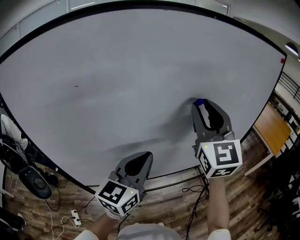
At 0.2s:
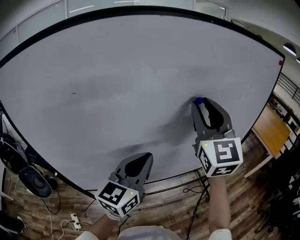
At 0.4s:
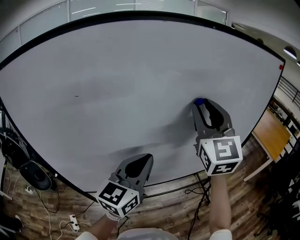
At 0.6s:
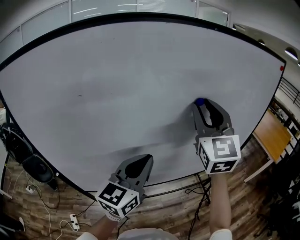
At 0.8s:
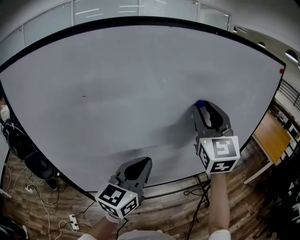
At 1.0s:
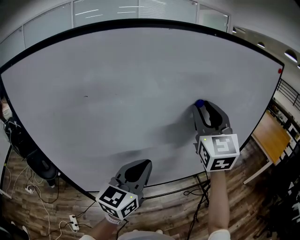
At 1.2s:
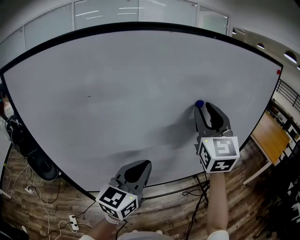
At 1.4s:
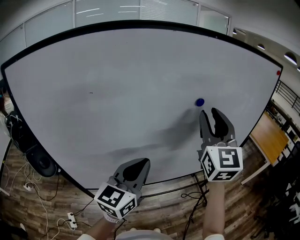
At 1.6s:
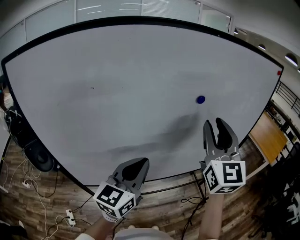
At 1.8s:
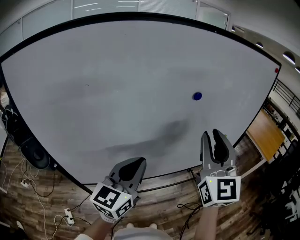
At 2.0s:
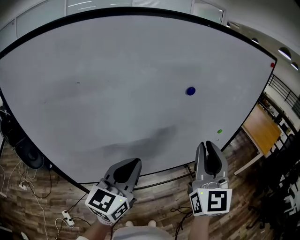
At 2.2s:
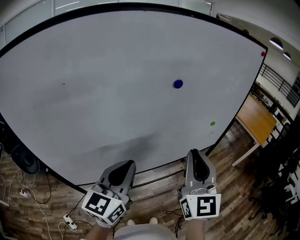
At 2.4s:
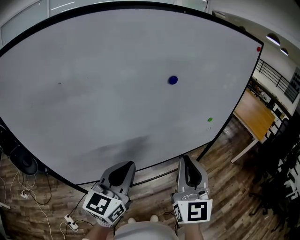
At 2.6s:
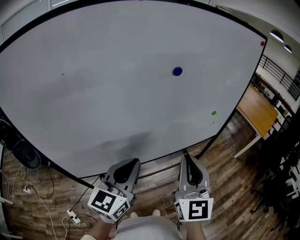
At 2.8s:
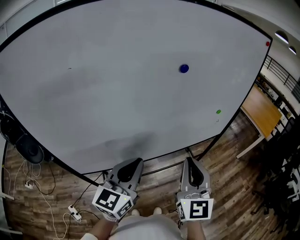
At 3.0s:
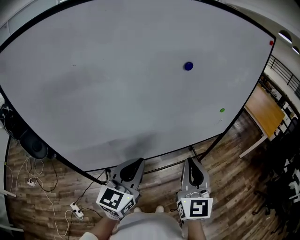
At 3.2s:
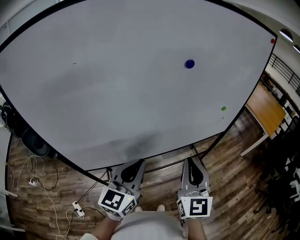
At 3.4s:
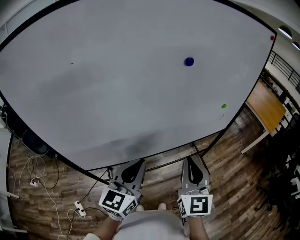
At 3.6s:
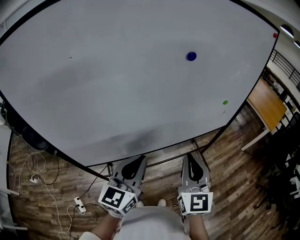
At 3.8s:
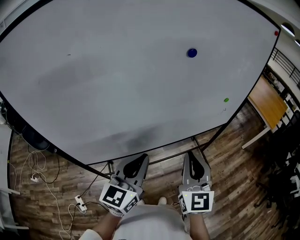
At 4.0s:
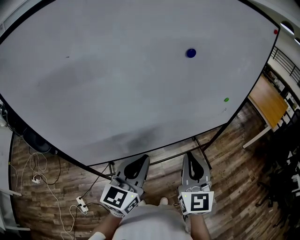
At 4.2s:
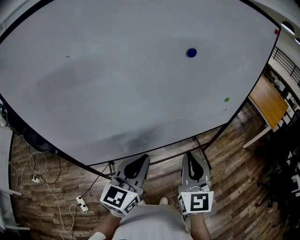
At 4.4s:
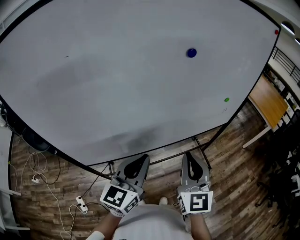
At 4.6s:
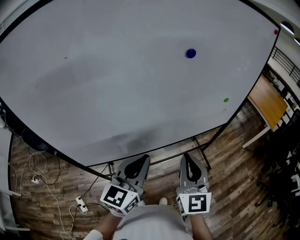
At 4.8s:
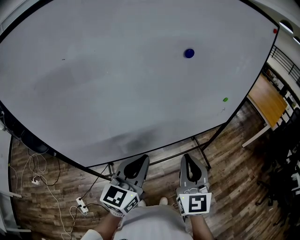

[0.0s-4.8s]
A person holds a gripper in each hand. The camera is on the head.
0.0s to 1.6s: The right gripper ends up some 5 cm from where it was.
1.6s to 3.2s: The left gripper shifts roughly 10 cm downward and backward, while the right gripper goes approximately 25 cm downward and backward, and closes up.
3.2s to 4.8s: There are only small adjustments of the grippers.

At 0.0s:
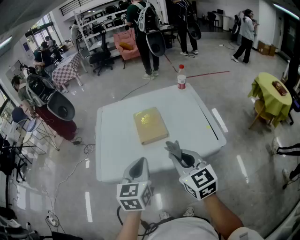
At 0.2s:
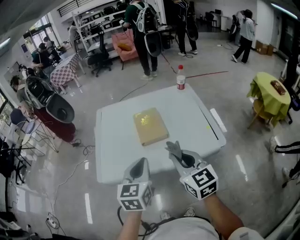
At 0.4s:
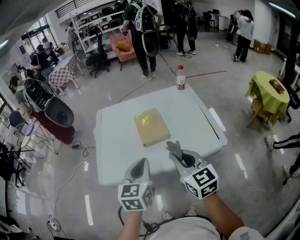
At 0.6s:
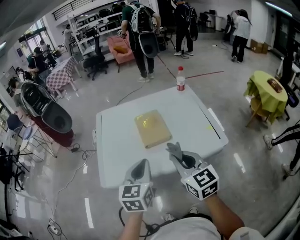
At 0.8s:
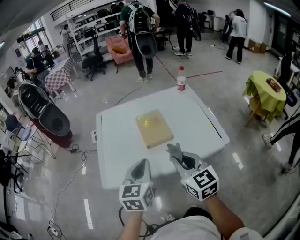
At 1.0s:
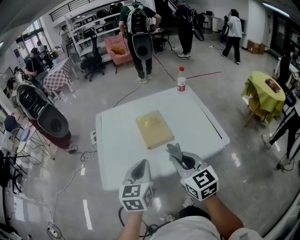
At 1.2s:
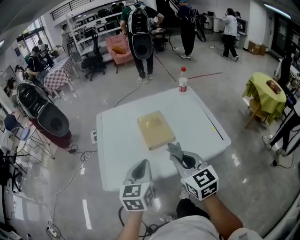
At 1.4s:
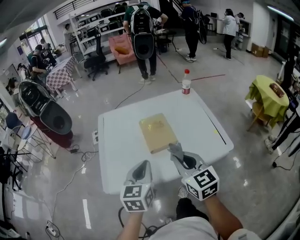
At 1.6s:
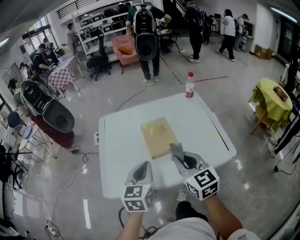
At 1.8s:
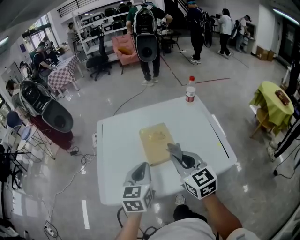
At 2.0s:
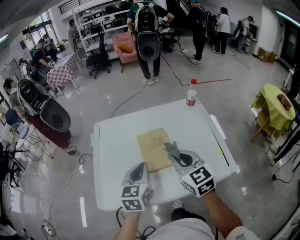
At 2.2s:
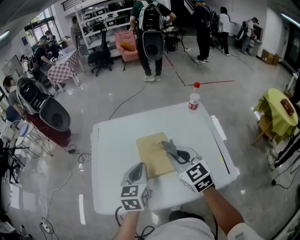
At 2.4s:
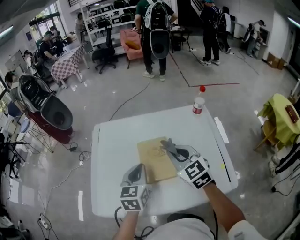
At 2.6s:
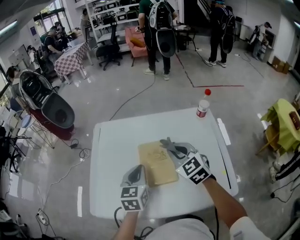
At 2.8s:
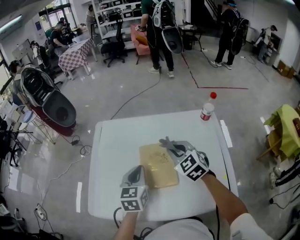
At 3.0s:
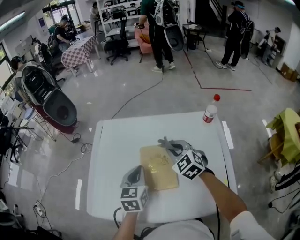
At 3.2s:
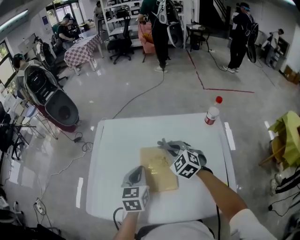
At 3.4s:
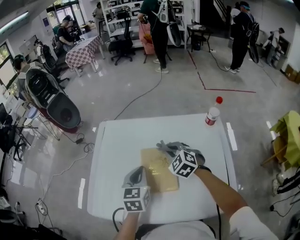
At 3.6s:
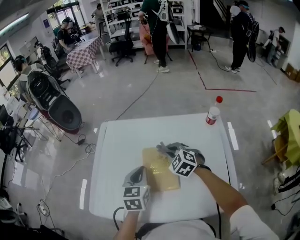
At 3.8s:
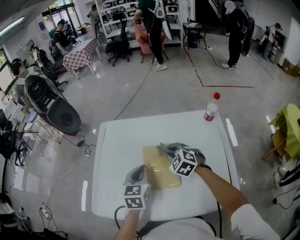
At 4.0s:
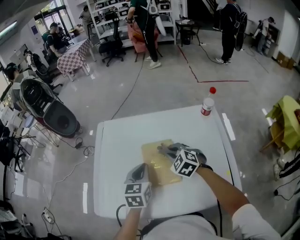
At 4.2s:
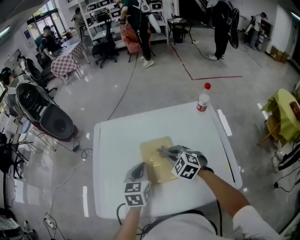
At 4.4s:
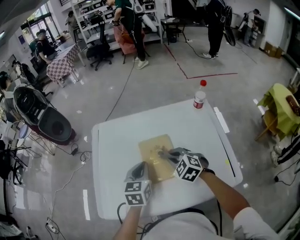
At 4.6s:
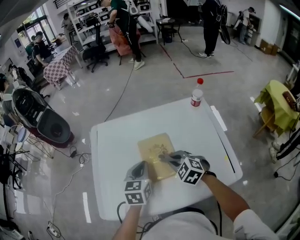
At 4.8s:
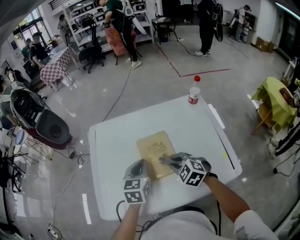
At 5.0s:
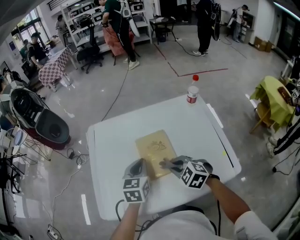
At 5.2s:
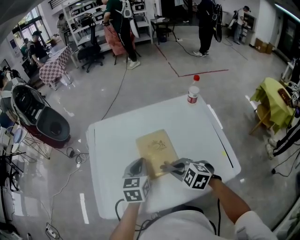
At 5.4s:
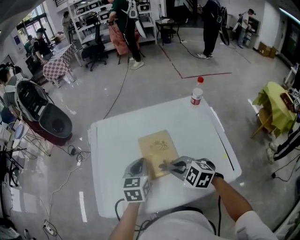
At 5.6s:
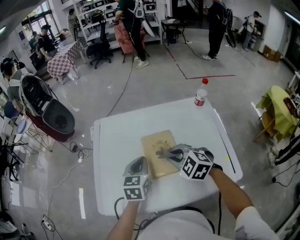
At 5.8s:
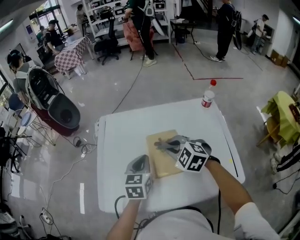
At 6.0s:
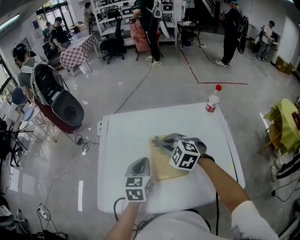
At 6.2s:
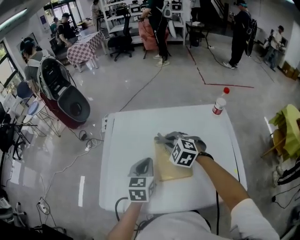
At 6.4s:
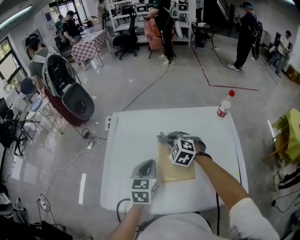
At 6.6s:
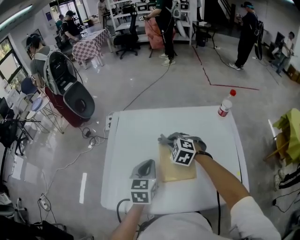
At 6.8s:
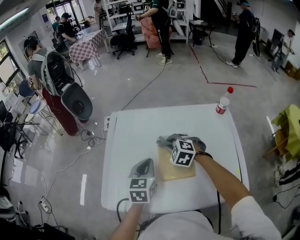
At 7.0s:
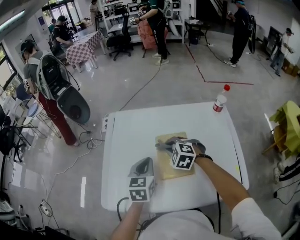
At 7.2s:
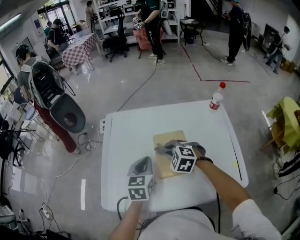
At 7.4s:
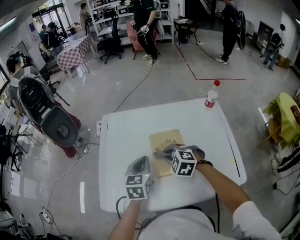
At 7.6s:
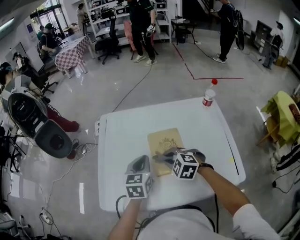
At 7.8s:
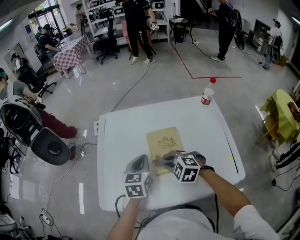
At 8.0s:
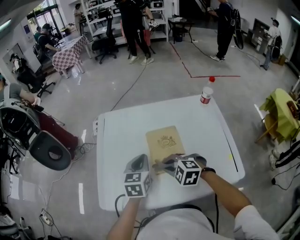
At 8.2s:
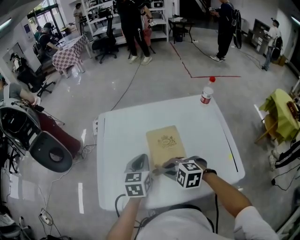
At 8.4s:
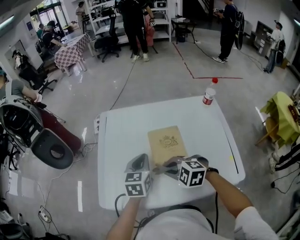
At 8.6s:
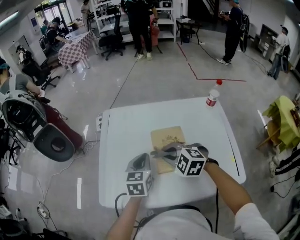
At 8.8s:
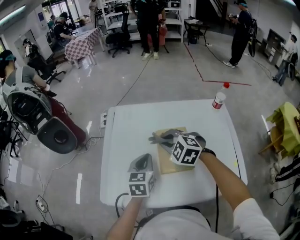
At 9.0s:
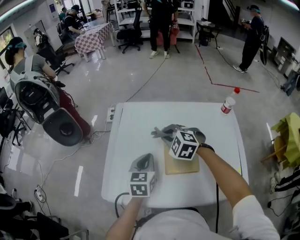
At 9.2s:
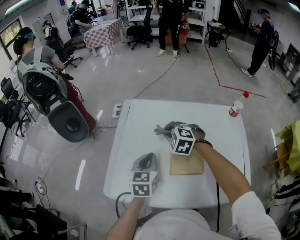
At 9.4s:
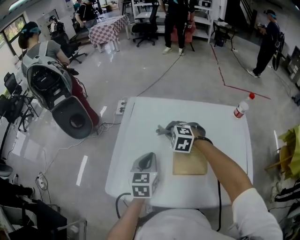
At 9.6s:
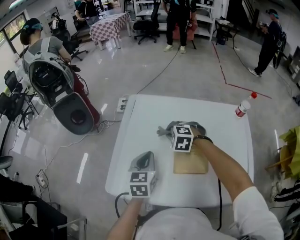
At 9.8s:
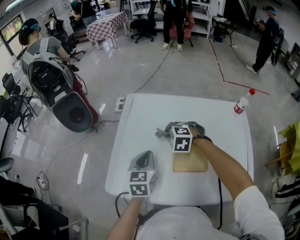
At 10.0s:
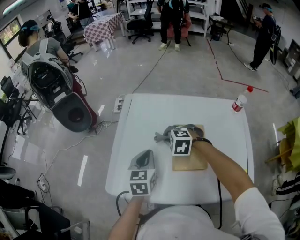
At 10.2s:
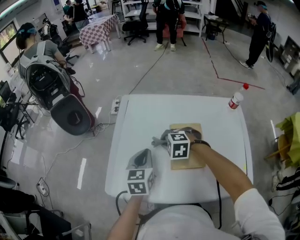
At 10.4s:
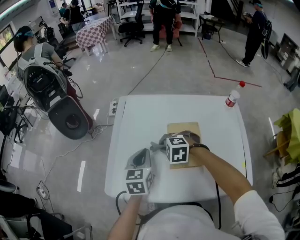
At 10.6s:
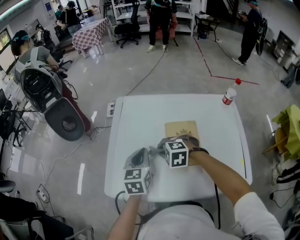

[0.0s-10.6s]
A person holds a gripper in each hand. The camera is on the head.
0.0s to 1.6s: Both grippers travel together forward, approximately 5 cm.
1.6s to 3.0s: The right gripper moves forward, roughly 25 cm, and changes its angle by some 40 degrees. Meanwhile the left gripper goes about 20 cm forward.
3.0s to 4.6s: The right gripper heads backward and downward, covering approximately 10 cm.
4.6s to 6.0s: The right gripper moves forward, to the left and upward, some 10 cm.
6.0s to 7.6s: The right gripper heads backward and downward, covering approximately 10 cm.
7.6s to 9.0s: The right gripper goes about 10 cm forward.
9.0s to 10.6s: The right gripper heads backward, to the left and downward, covering approximately 15 cm, and turns by some 20 degrees.

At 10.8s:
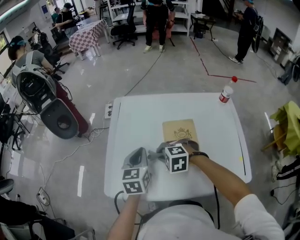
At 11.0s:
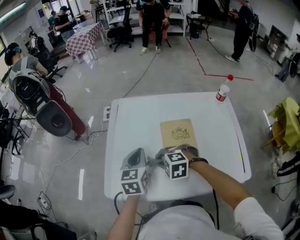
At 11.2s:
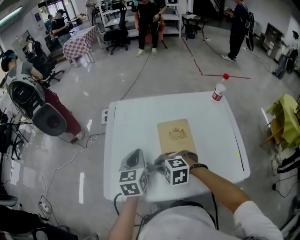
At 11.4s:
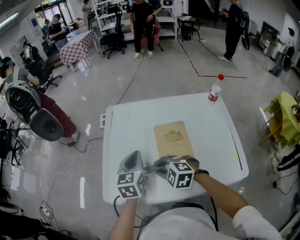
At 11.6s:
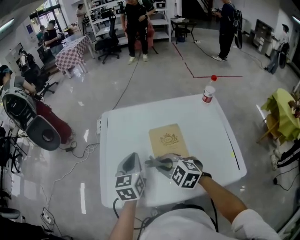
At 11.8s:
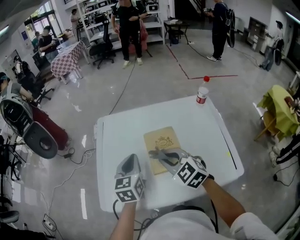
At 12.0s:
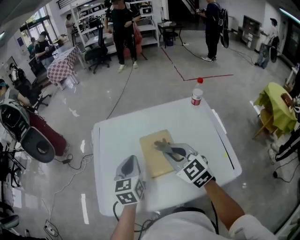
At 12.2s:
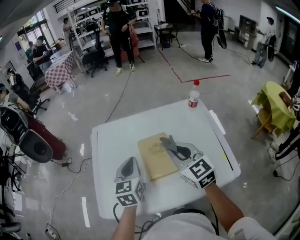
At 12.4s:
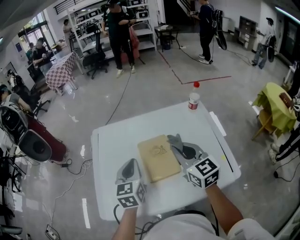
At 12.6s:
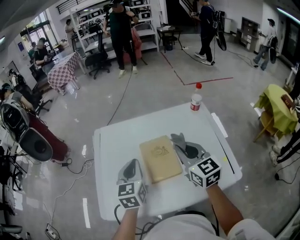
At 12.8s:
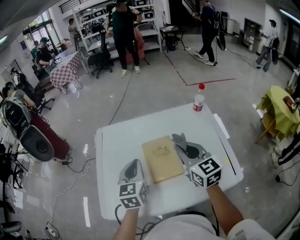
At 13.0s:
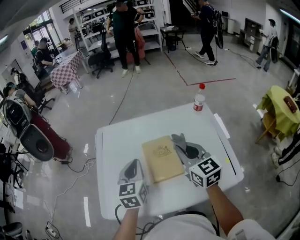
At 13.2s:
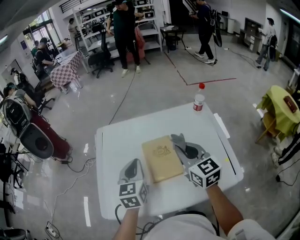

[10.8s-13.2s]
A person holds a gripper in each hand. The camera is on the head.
10.8s to 12.0s: The right gripper travels upward and to the right by approximately 20 cm, and tilts its fingers some 40 degrees upward. The left gripper travels to the right and upward by roughly 10 cm.
12.0s to 13.2s: The right gripper is displaced to the right by approximately 5 cm, and changes its angle by approximately 20 degrees.

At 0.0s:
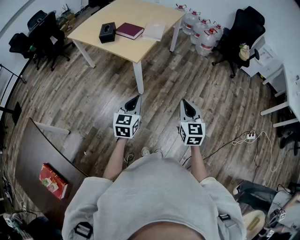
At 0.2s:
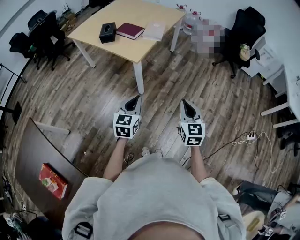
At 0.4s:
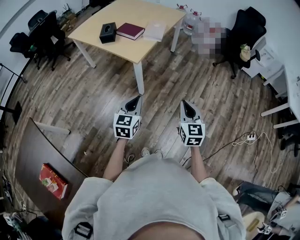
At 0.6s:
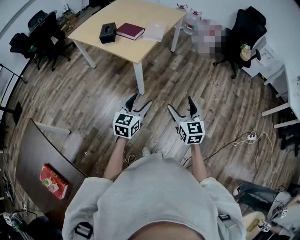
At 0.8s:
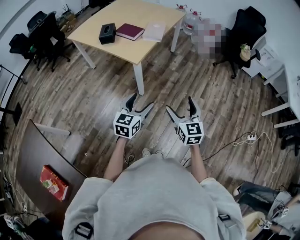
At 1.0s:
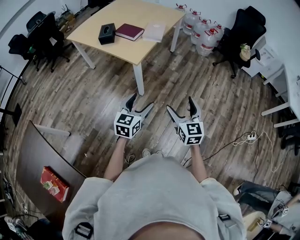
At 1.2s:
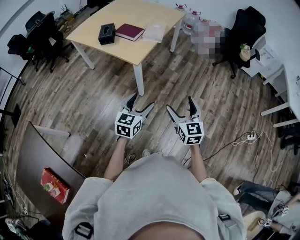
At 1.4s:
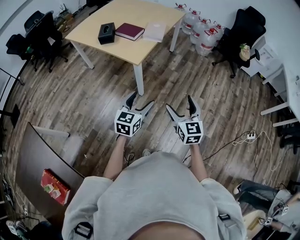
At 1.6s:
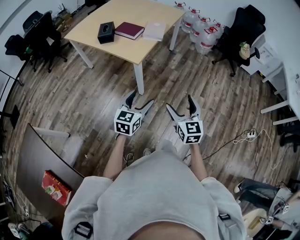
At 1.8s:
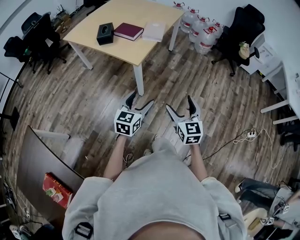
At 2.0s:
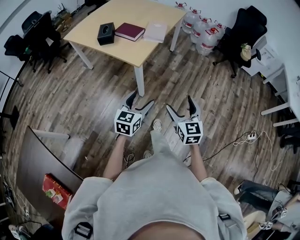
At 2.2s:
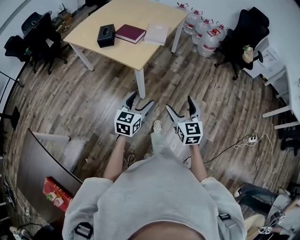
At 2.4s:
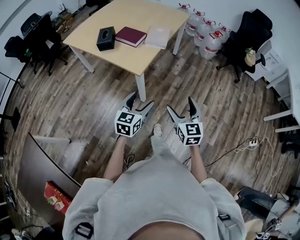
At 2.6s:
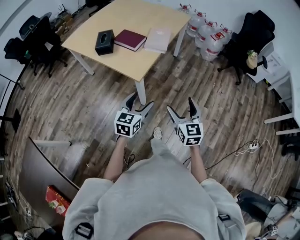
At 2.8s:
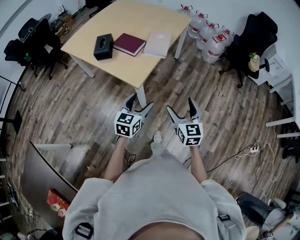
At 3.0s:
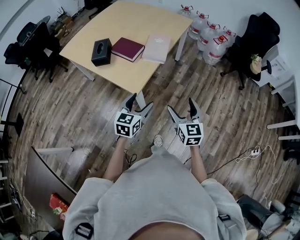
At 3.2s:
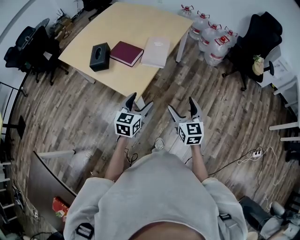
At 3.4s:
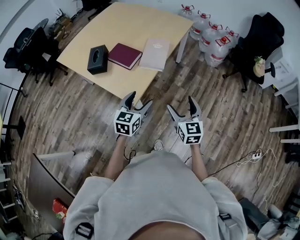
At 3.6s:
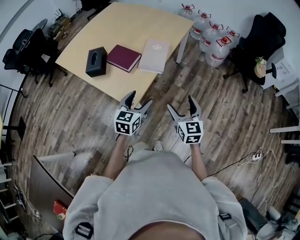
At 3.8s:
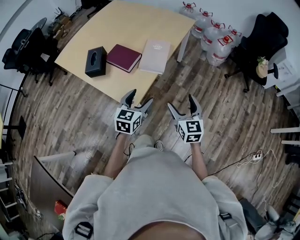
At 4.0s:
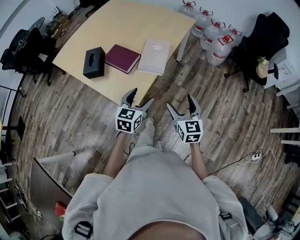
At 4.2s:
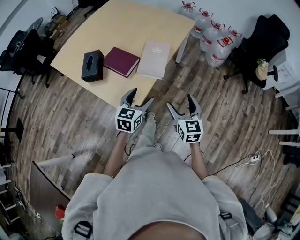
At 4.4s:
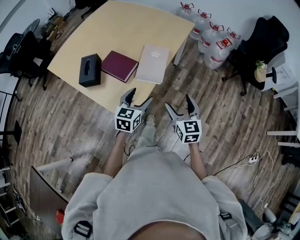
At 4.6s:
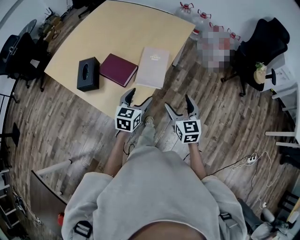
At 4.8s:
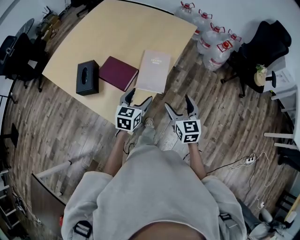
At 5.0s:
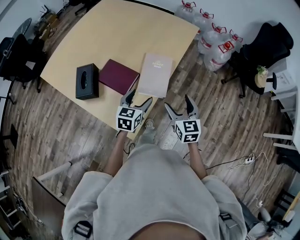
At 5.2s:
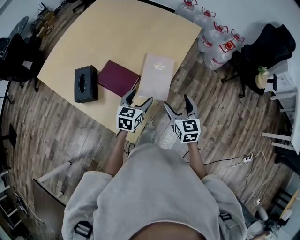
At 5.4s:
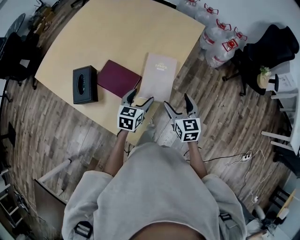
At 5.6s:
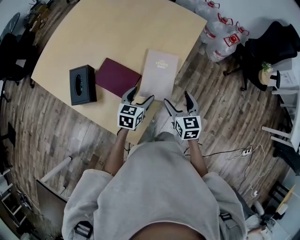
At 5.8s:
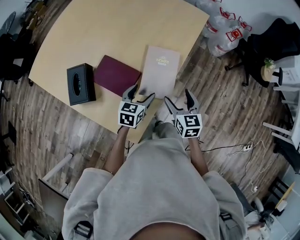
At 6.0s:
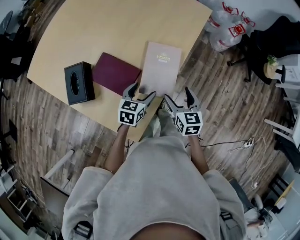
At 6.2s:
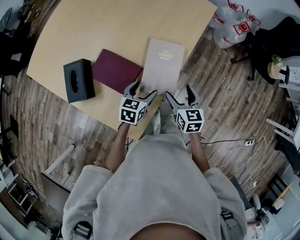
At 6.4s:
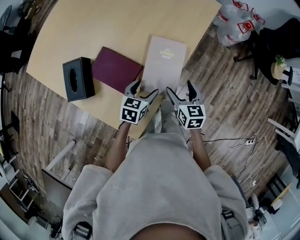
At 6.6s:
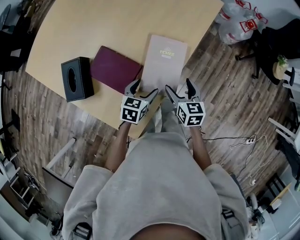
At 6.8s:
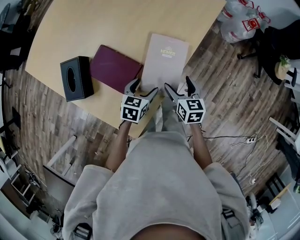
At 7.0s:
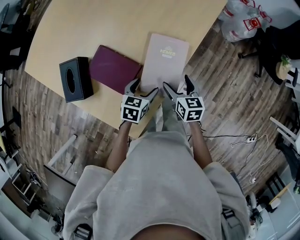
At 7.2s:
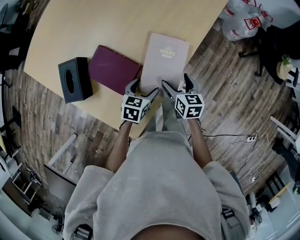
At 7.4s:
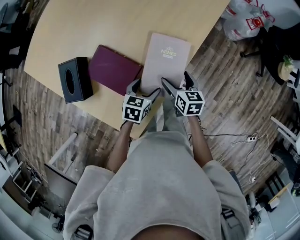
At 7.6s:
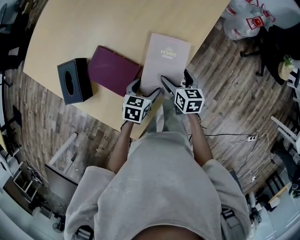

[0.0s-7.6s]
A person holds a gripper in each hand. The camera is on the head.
0.0s to 1.6s: The left gripper opens. The right gripper heads to the left, covering some 5 cm, and opens its fingers.
1.6s to 3.0s: The two grippers go roughly 25 cm forward.
3.0s to 4.6s: Both grippers travel together forward, some 25 cm.
4.6s to 6.0s: The left gripper heads forward and downward, covering roughly 15 cm. The right gripper moves forward, downward and to the left, about 20 cm.
6.0s to 7.6s: The right gripper moves downward and forward, approximately 10 cm. Meanwhile the left gripper is displaced downward by some 5 cm.
